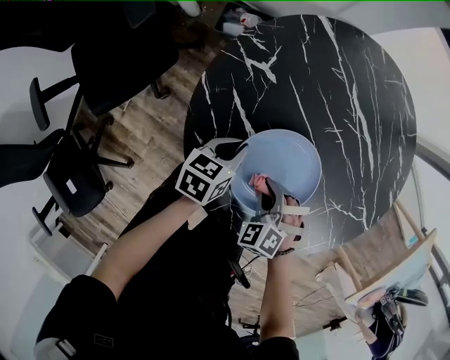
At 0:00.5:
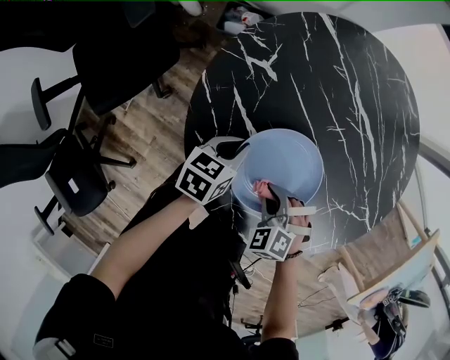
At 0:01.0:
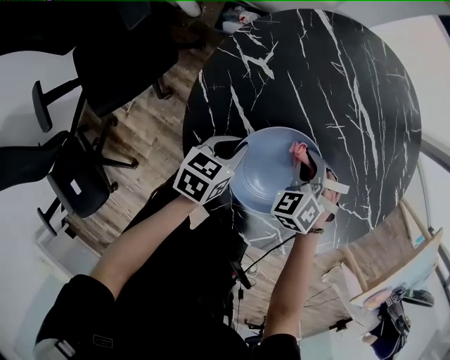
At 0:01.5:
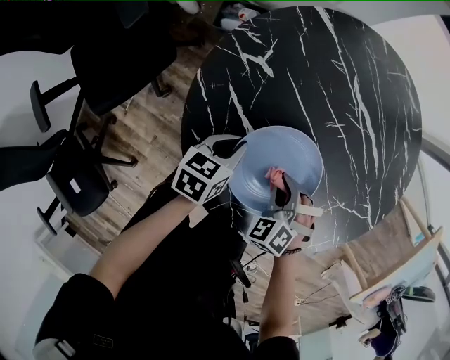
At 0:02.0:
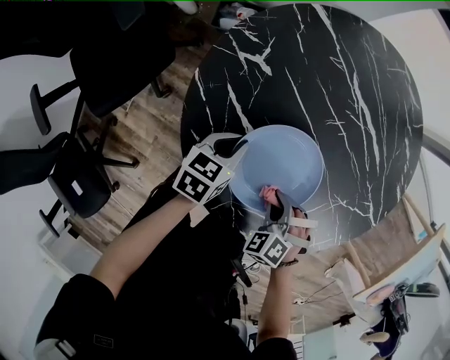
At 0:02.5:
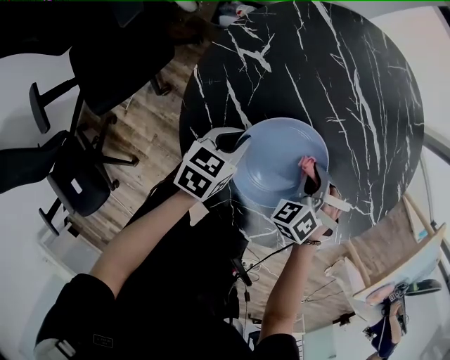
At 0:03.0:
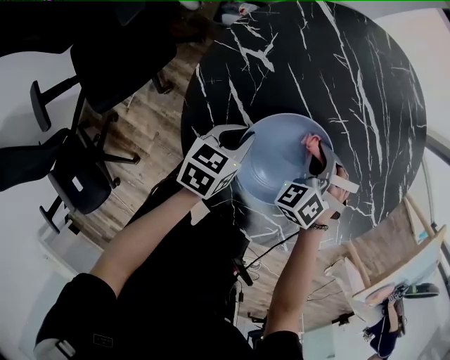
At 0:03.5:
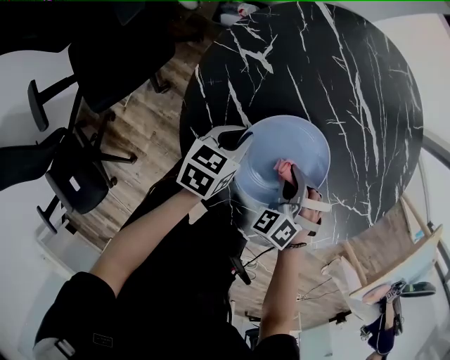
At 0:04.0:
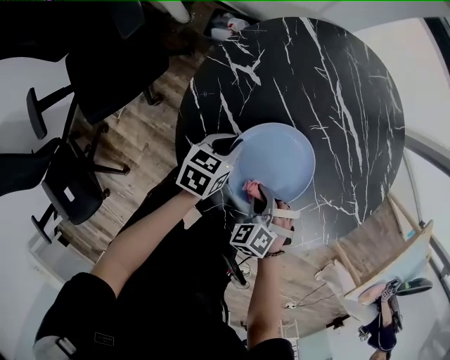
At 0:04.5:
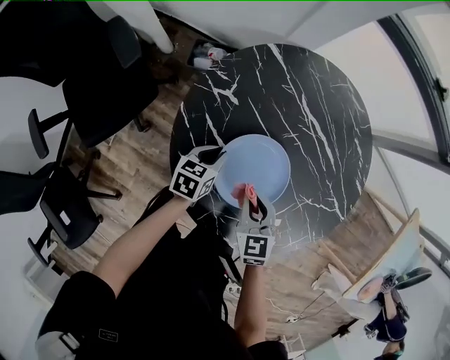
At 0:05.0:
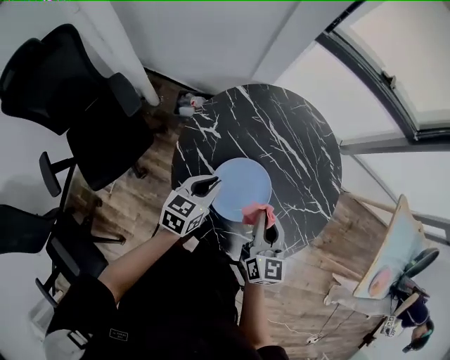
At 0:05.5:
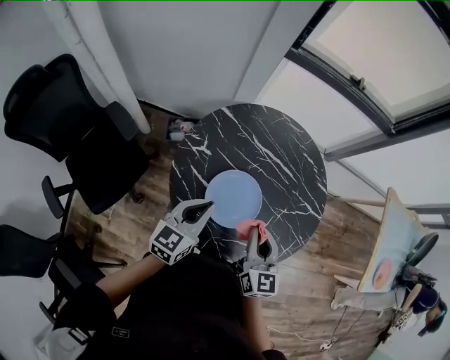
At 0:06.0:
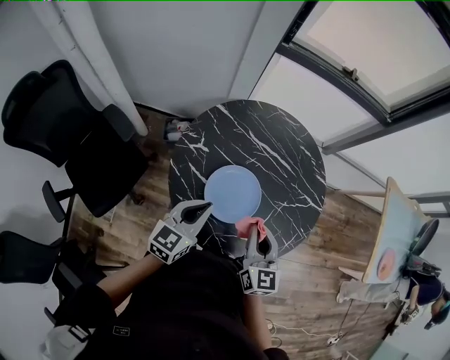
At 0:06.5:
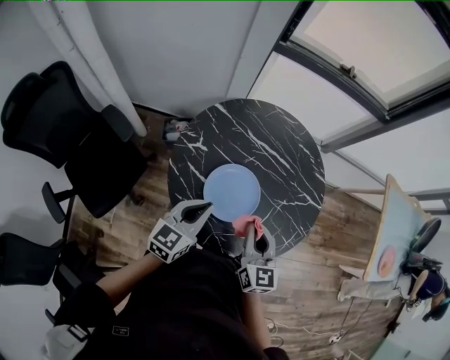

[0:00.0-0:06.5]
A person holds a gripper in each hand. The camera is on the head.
0:00.0 to 0:02.0: The right gripper shifts some 5 cm to the right, and travels forward and back again, roughly 15 cm each way.
0:02.0 to 0:04.5: The right gripper goes forward and backward, about 15 cm each way, reversing 2 times, and swivels about 50 degrees.
0:04.5 to 0:06.5: The grippers both shift upward by approximately 25 cm. The left gripper rotates some 40 degrees. The right gripper swivels about 40 degrees.

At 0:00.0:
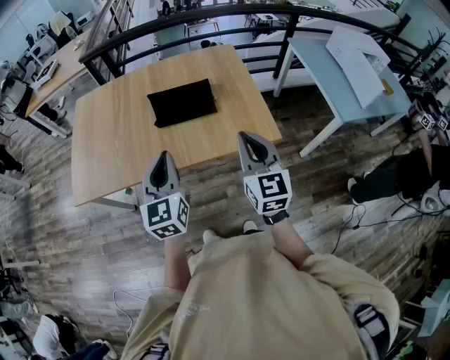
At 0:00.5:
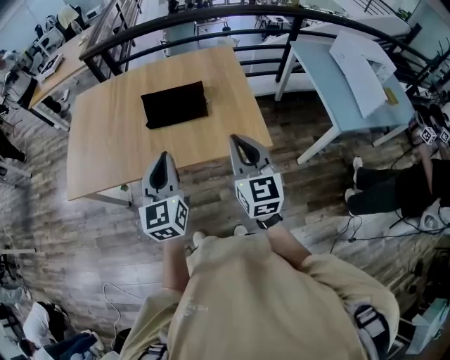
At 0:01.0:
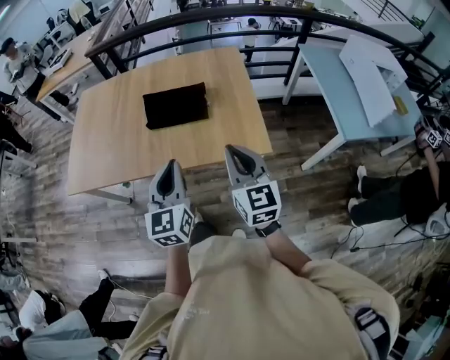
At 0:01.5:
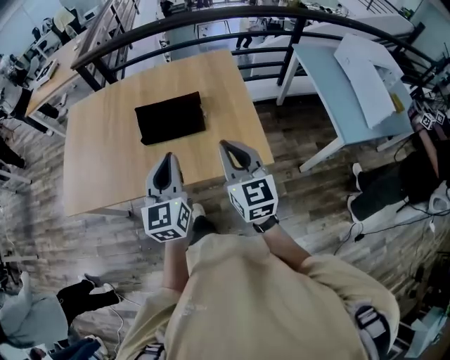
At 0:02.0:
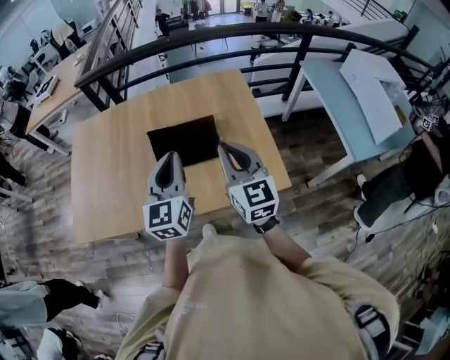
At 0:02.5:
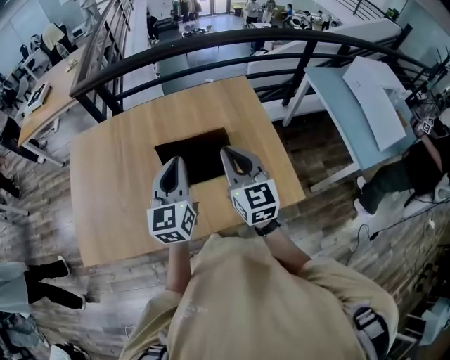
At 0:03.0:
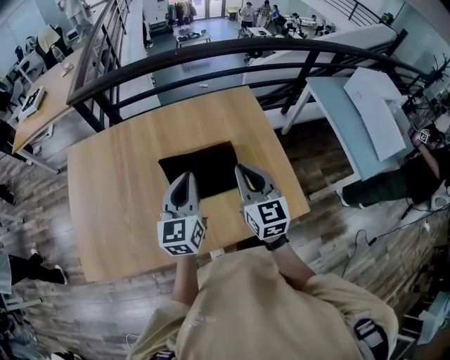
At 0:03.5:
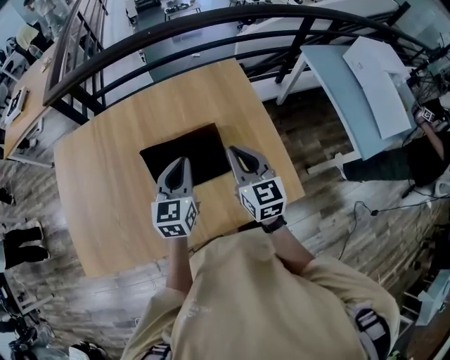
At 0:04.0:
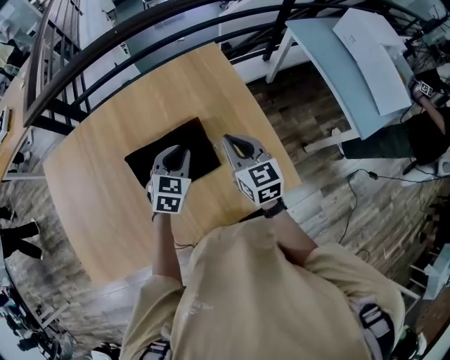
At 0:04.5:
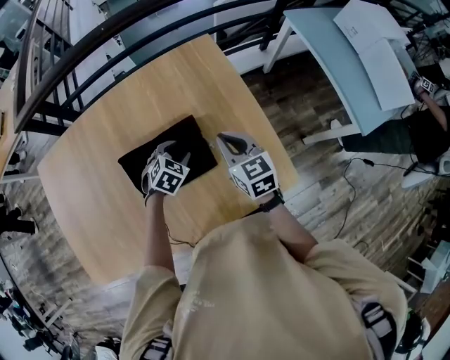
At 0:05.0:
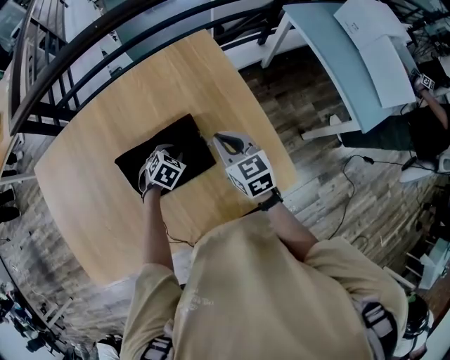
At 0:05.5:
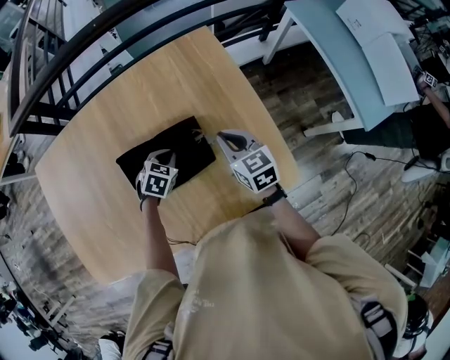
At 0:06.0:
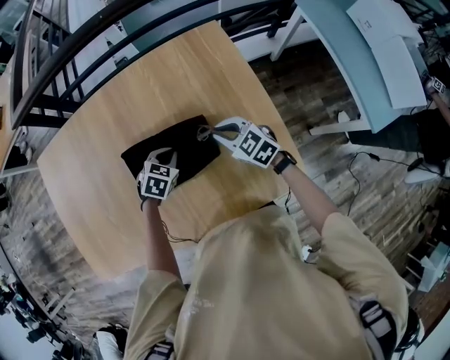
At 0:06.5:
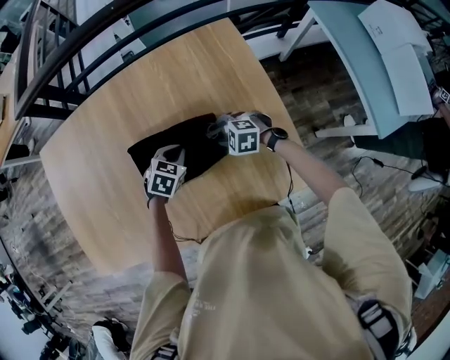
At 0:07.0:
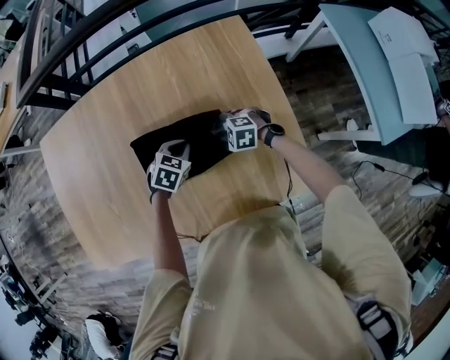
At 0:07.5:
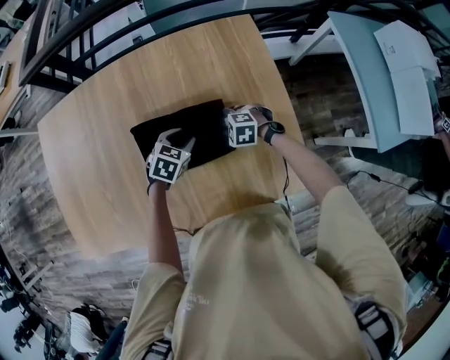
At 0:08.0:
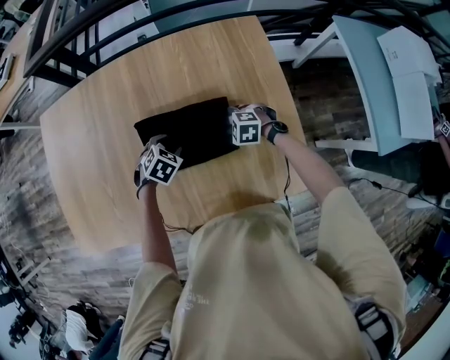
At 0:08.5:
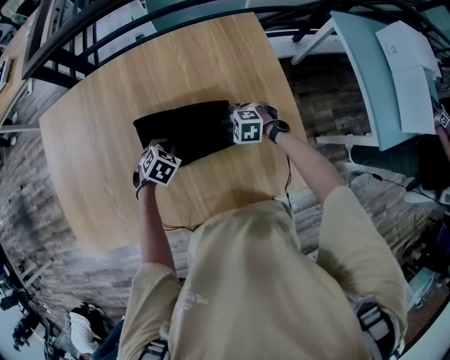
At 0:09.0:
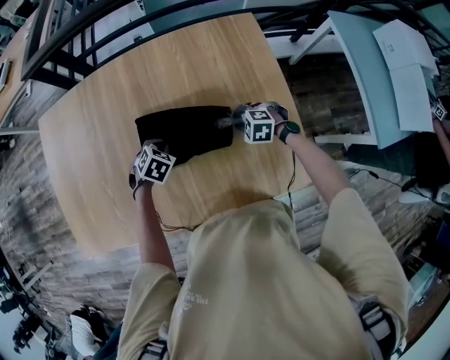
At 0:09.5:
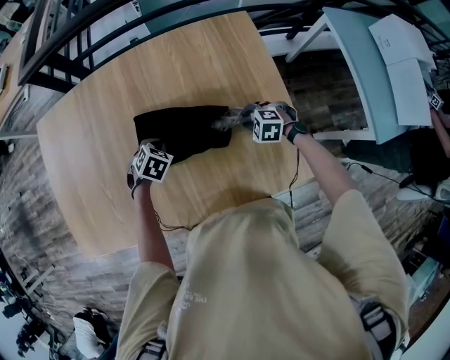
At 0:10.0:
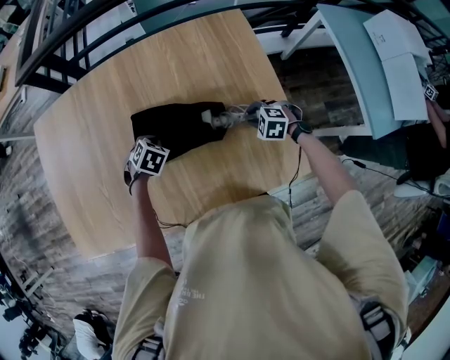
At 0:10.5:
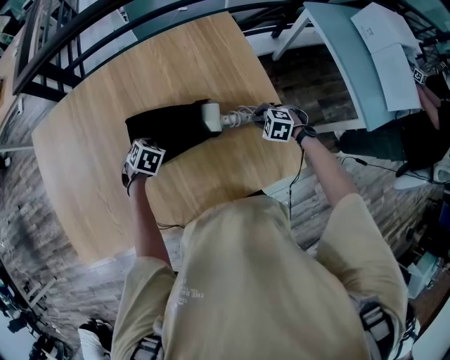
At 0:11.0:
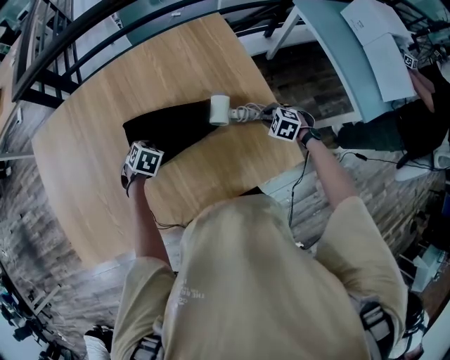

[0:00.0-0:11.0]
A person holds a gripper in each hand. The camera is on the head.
0:00.0 to 0:02.0: The two grippers go approximately 20 cm forward.
0:02.0 to 0:03.5: The grippers both shift forward and downward by about 20 cm. The left gripper changes its angle by some 20 degrees.
0:03.5 to 0:05.5: The right gripper heads downward and forward, covering approximately 15 cm, while the left gripper is displaced downward by about 20 cm, tilts its fingers some 40 degrees downward, and opens, then closes once more.
0:05.5 to 0:07.5: The right gripper moves downward, about 15 cm, and angles its fingers downward, by some 40 degrees, while the left gripper opens.
0:07.5 to 0:09.0: The left gripper shifts about 10 cm to the left, and closes.
0:09.0 to 0:11.0: The right gripper goes approximately 20 cm to the right and backward, and rotates roughly 30 degrees.

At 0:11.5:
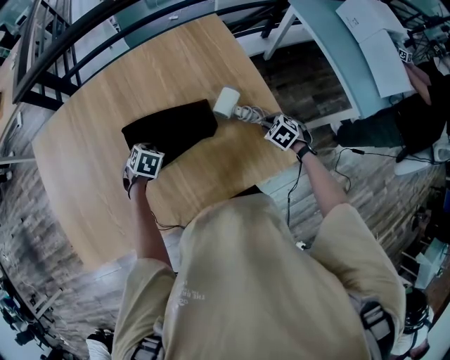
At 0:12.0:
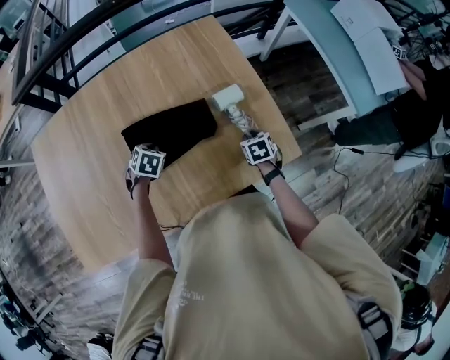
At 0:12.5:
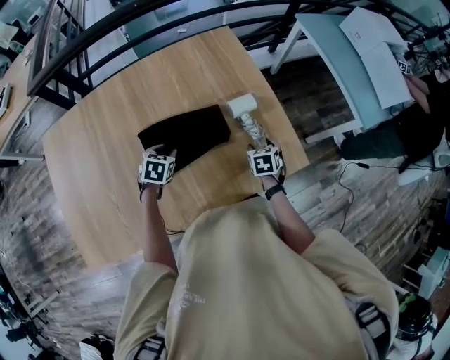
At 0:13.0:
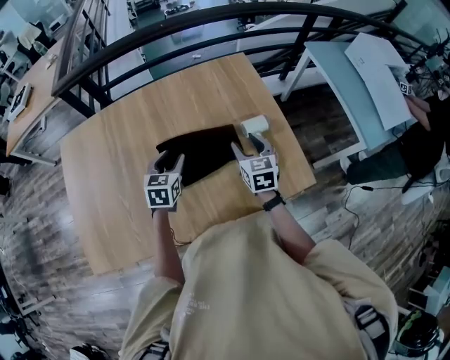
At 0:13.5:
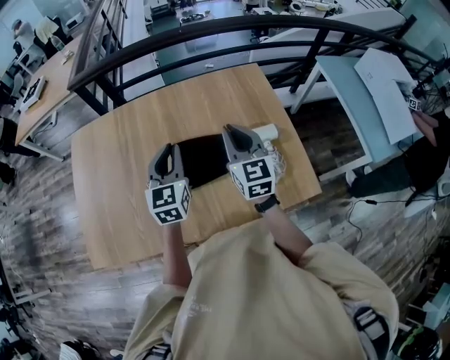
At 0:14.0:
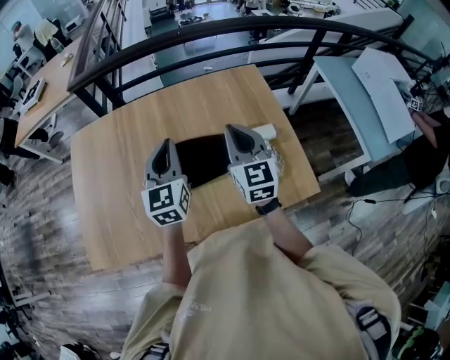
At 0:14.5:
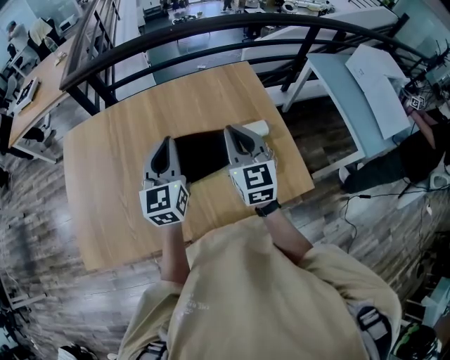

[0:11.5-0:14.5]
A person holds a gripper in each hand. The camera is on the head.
0:11.5 to 0:13.0: The left gripper heads upward, covering some 15 cm, tilts its fingers roughly 40 degrees upward, and opens. The right gripper moves to the left and upward, approximately 25 cm, tilts its fingers about 40 degrees upward, and opens.
0:13.0 to 0:14.5: The left gripper is displaced upward by some 15 cm, points its fingers some 30 degrees further upward, and closes its fingers. The right gripper travels upward and to the left by approximately 15 cm, turns by roughly 20 degrees, and closes up.

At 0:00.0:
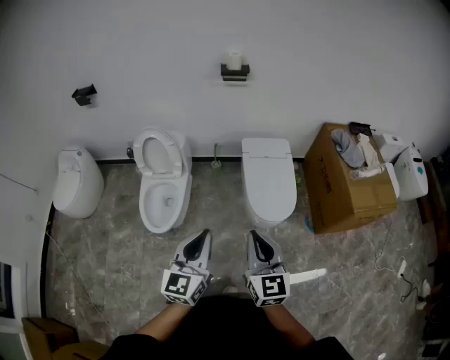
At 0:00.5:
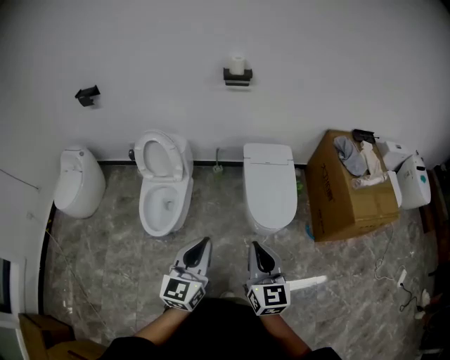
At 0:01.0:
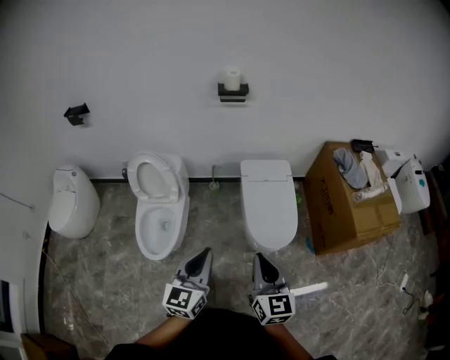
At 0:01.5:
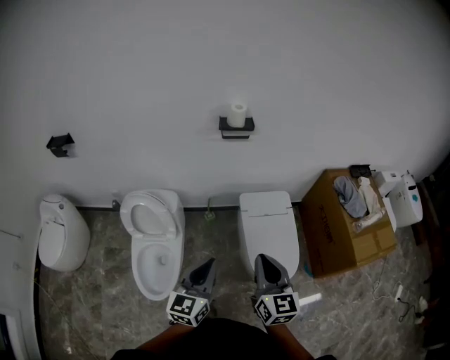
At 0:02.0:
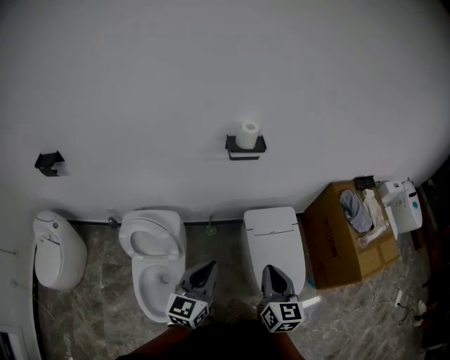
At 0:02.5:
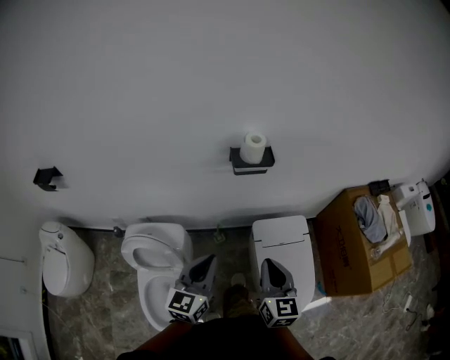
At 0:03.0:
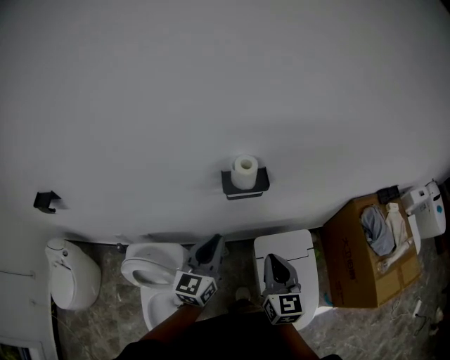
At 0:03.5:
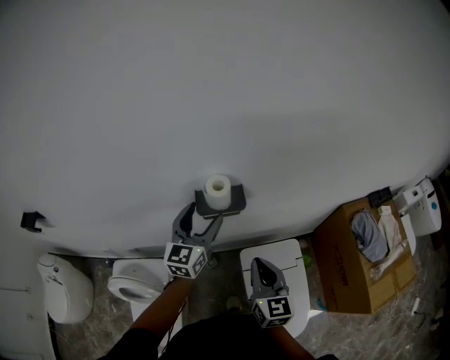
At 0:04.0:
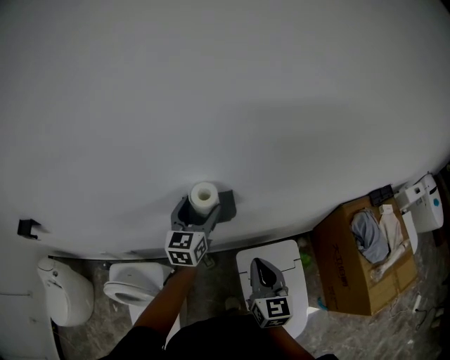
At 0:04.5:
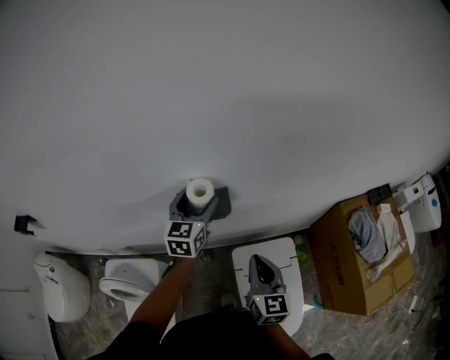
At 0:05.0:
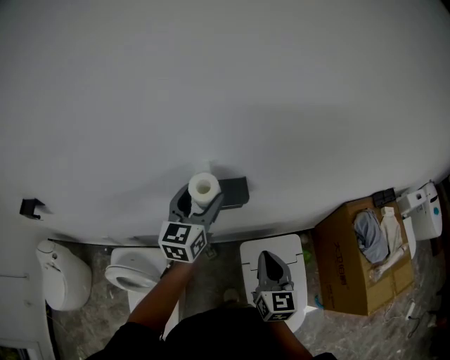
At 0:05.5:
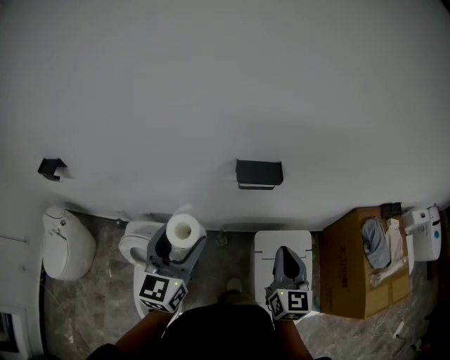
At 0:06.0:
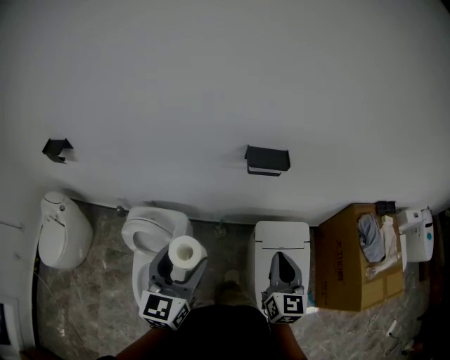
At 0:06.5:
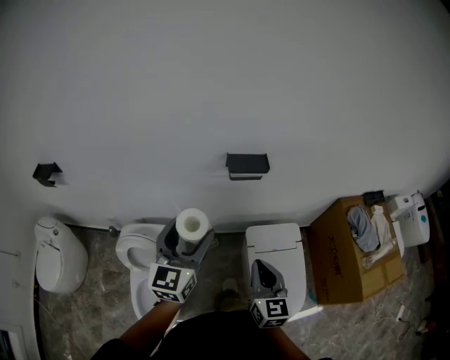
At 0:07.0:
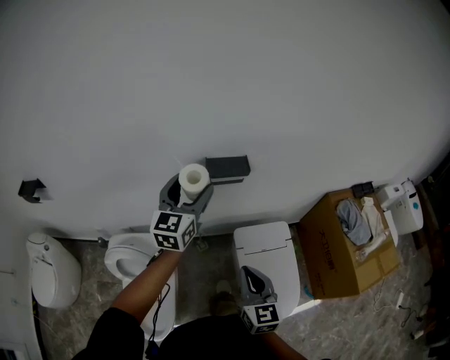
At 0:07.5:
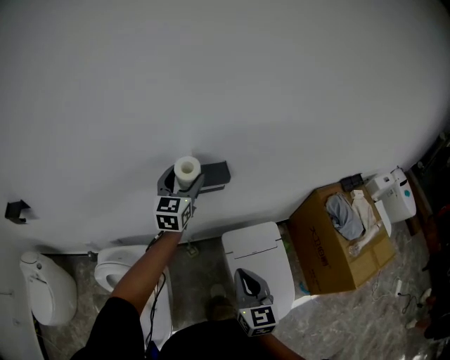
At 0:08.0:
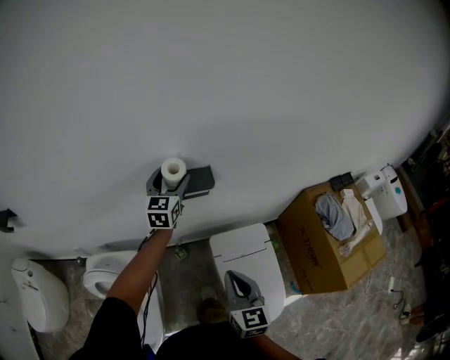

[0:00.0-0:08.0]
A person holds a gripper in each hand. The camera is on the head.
0:00.0 to 0:02.0: Both grippers are carried forward, about 50 cm.
0:02.0 to 0:04.0: Both grippers move forward, some 50 cm. The left gripper opens.
0:04.0 to 0:06.0: The right gripper is displaced backward and to the left by approximately 25 cm, while the left gripper heads backward and to the left, covering some 50 cm.
0:06.0 to 0:08.0: The right gripper ends up about 5 cm from where it was. The left gripper moves forward, about 40 cm.
